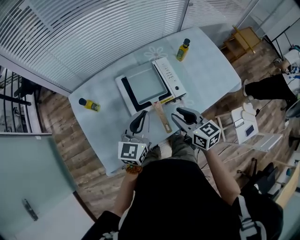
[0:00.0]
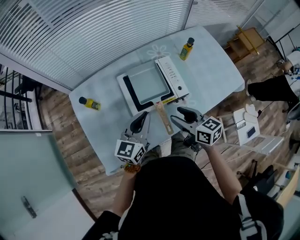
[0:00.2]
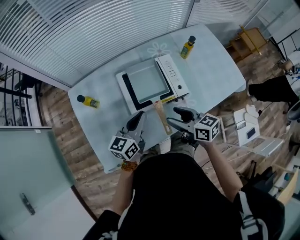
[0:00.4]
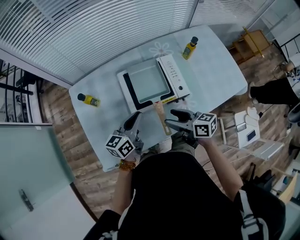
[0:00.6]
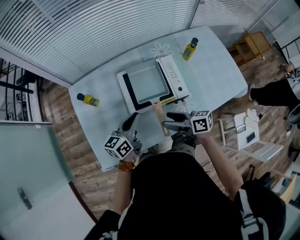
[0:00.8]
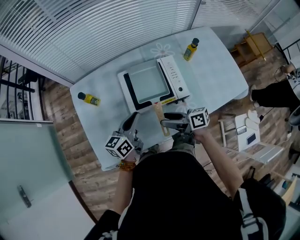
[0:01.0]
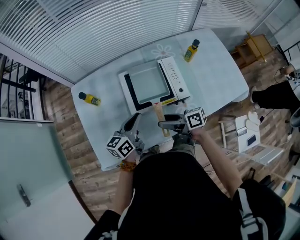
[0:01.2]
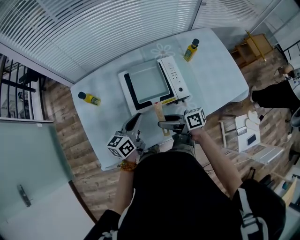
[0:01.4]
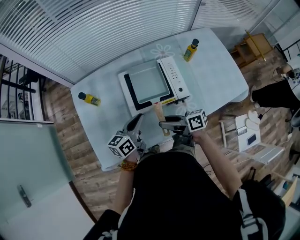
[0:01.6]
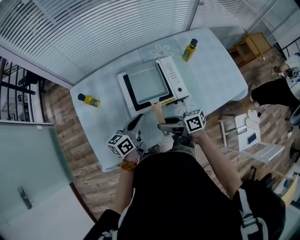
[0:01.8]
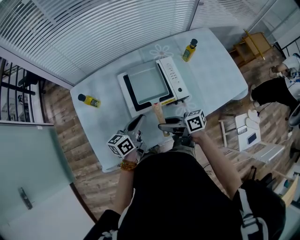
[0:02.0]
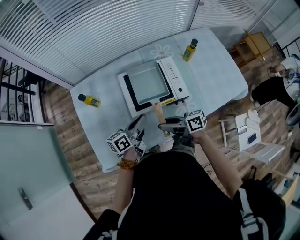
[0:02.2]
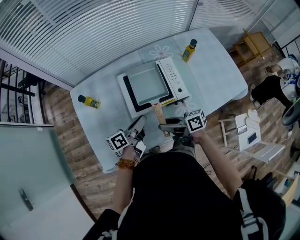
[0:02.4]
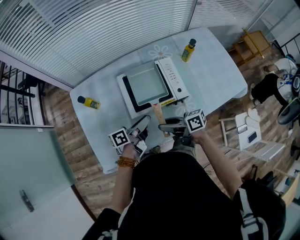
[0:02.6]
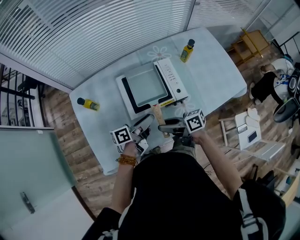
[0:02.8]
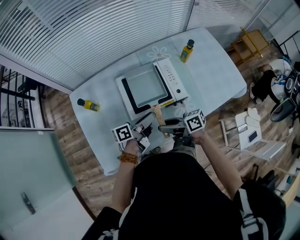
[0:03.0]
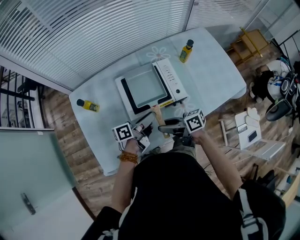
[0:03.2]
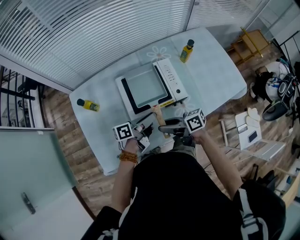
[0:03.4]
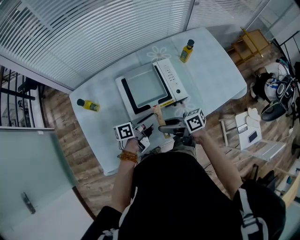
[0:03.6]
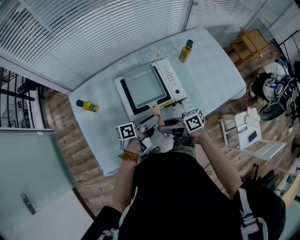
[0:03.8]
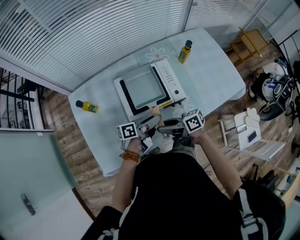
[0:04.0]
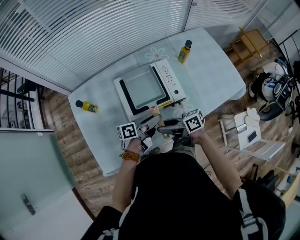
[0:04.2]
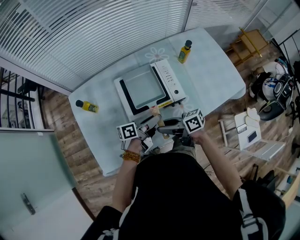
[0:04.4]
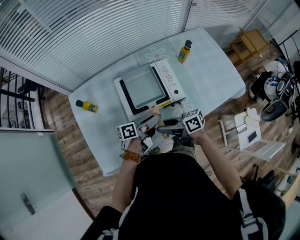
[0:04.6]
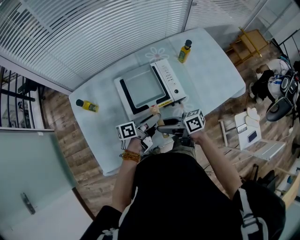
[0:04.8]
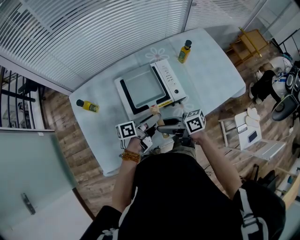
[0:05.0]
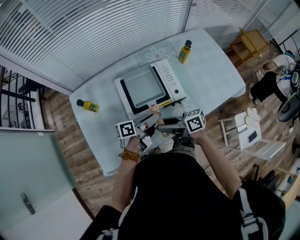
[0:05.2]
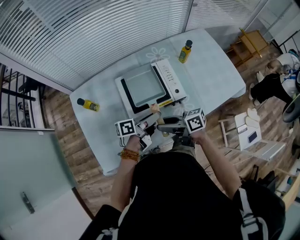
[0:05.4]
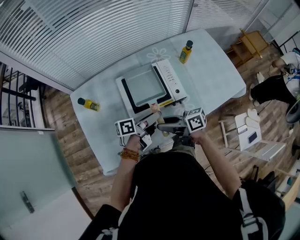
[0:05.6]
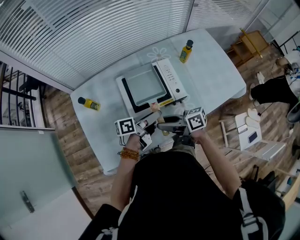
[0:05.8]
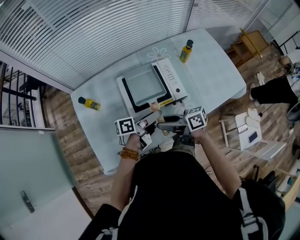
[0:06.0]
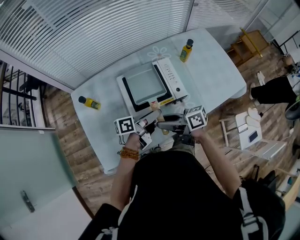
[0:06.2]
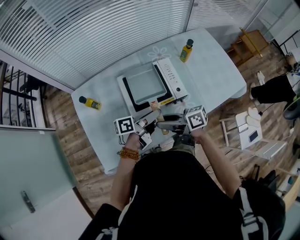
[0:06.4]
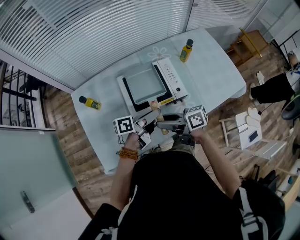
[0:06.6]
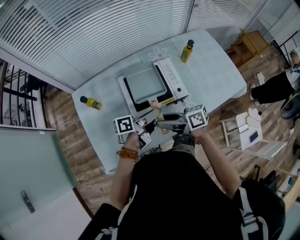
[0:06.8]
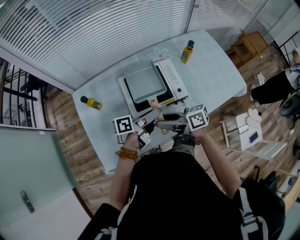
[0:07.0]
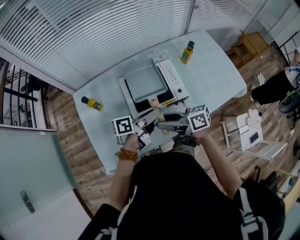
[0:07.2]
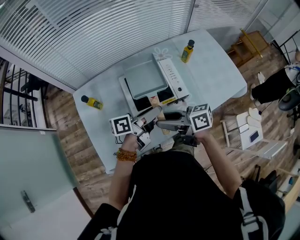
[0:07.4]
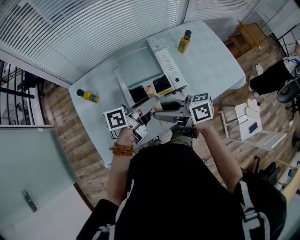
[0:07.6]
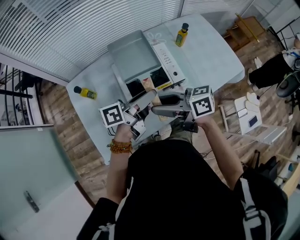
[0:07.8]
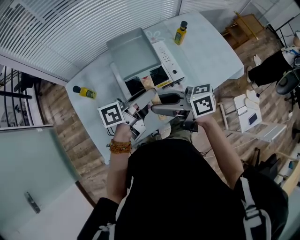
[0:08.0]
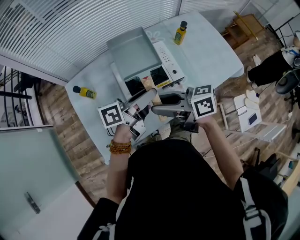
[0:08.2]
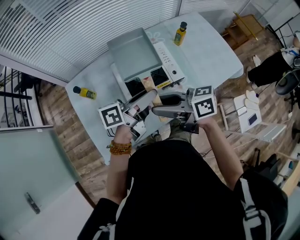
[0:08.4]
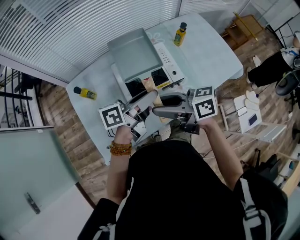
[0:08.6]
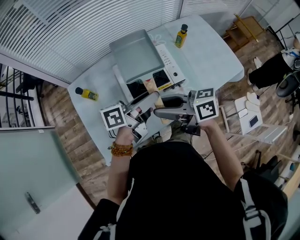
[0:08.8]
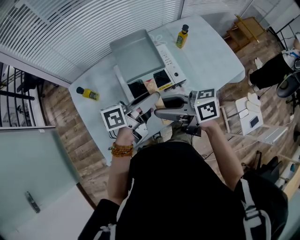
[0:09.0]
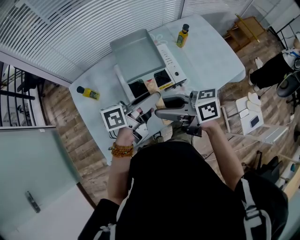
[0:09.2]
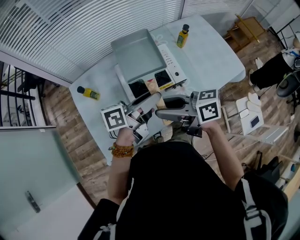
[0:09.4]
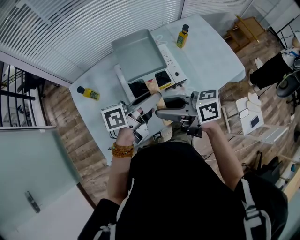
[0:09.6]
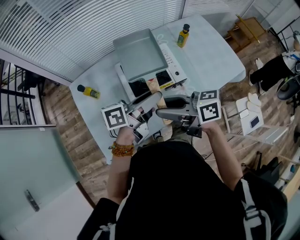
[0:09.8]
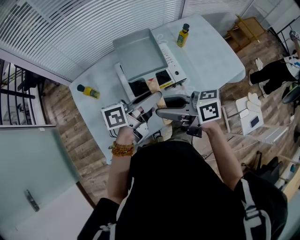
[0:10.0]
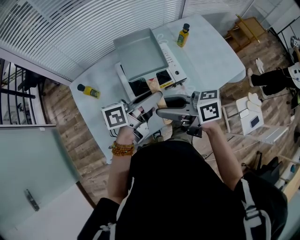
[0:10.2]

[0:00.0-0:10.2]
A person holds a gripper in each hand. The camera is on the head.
0:00.0 to 0:01.4: The left gripper travels downward by roughly 10 cm, and swivels approximately 30 degrees, while the right gripper moves downward and to the left, roughly 10 cm, turns by some 50 degrees, and opens.
0:01.4 to 0:03.0: The right gripper closes up. The left gripper shifts by about 5 cm, rotates approximately 40 degrees, and opens its fingers.
0:03.0 to 0:05.8: There are only small adjustments of the grippers.
0:05.8 to 0:07.2: The right gripper shifts by about 5 cm; the left gripper shifts roughly 5 cm upward.
0:07.2 to 0:08.8: Both grippers move upward, about 10 cm.
0:08.8 to 0:10.2: Both grippers stay about where they are.

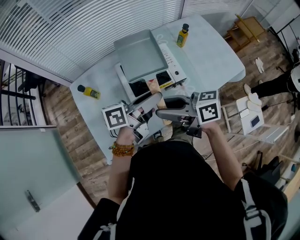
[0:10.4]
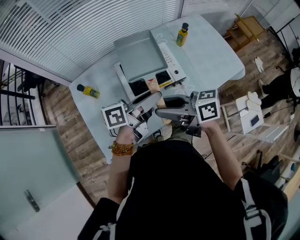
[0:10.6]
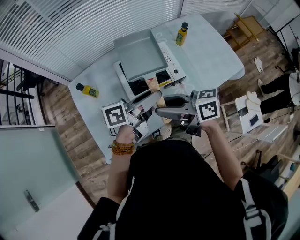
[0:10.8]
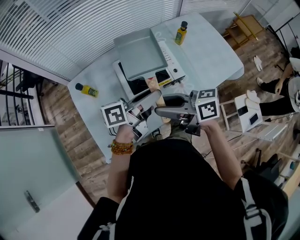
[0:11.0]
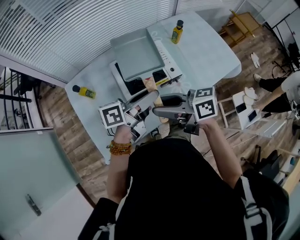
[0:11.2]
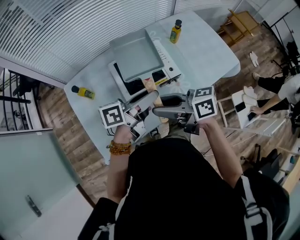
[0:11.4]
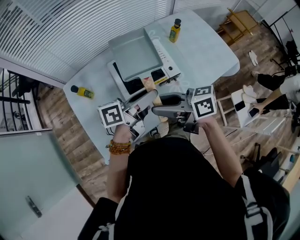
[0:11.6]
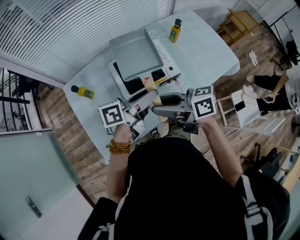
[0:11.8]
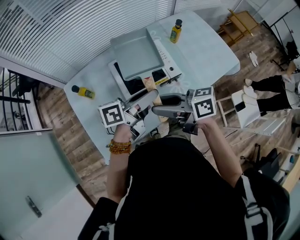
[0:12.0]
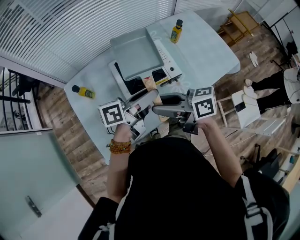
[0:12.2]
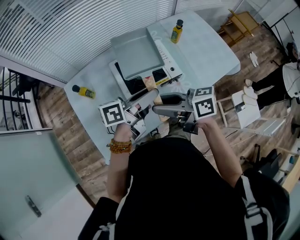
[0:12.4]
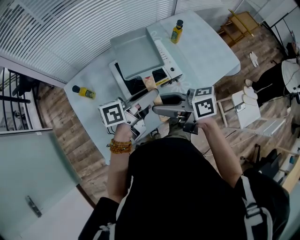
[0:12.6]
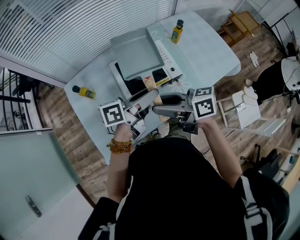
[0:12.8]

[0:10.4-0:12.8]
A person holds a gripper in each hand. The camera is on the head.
0:10.4 to 0:11.6: The two grippers keep their place.
0:11.6 to 0:12.8: Both grippers stay put.

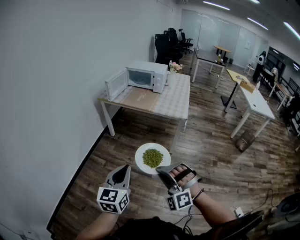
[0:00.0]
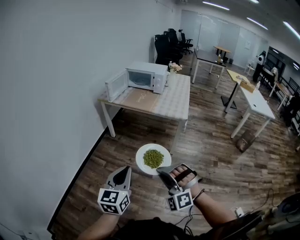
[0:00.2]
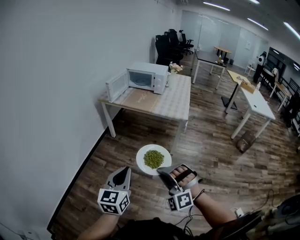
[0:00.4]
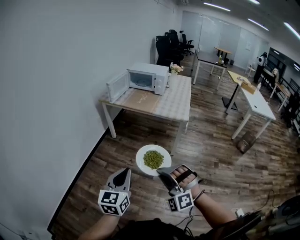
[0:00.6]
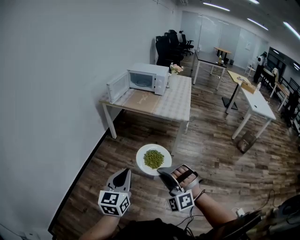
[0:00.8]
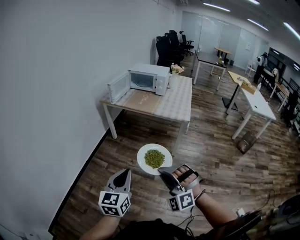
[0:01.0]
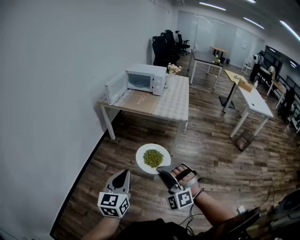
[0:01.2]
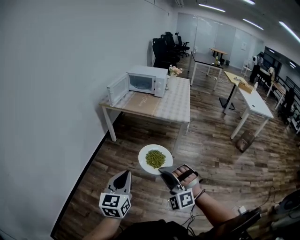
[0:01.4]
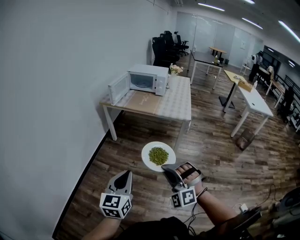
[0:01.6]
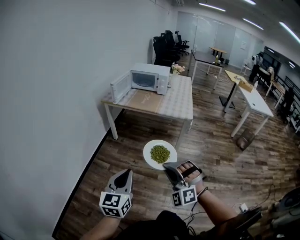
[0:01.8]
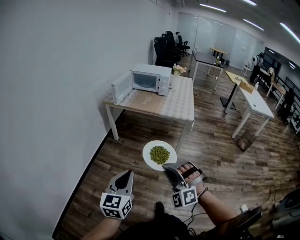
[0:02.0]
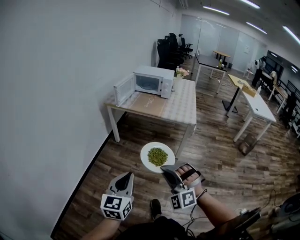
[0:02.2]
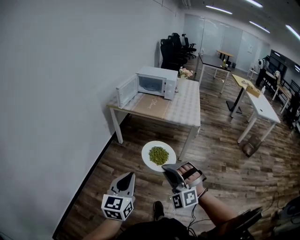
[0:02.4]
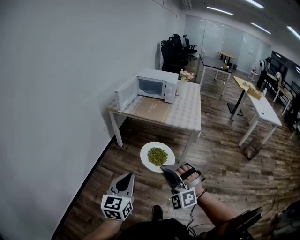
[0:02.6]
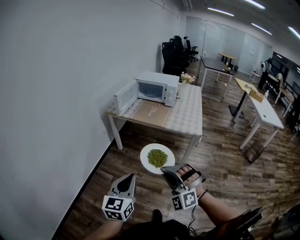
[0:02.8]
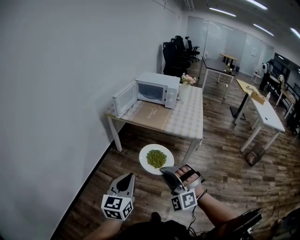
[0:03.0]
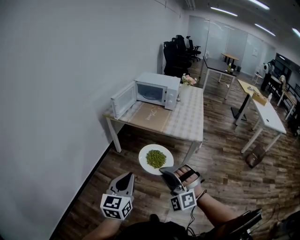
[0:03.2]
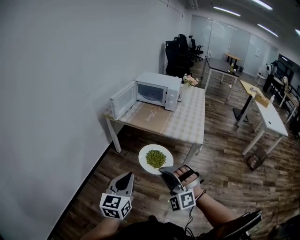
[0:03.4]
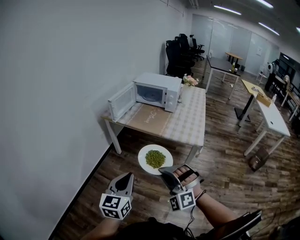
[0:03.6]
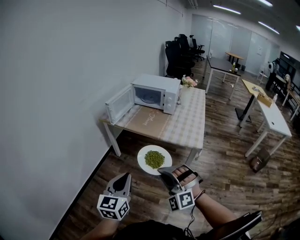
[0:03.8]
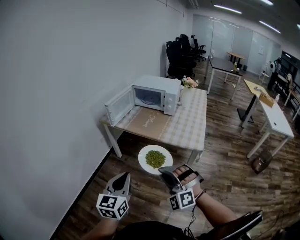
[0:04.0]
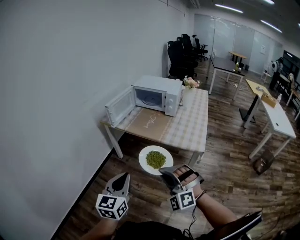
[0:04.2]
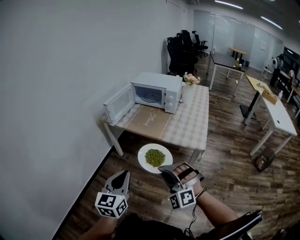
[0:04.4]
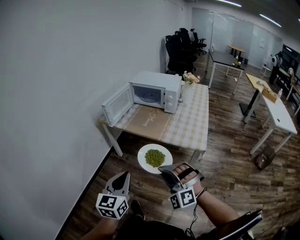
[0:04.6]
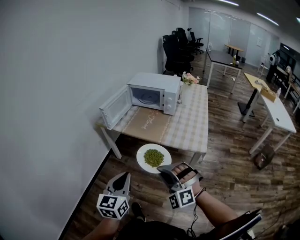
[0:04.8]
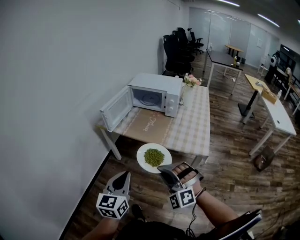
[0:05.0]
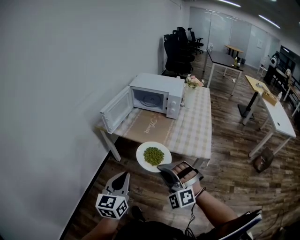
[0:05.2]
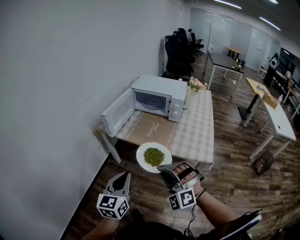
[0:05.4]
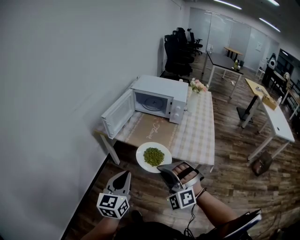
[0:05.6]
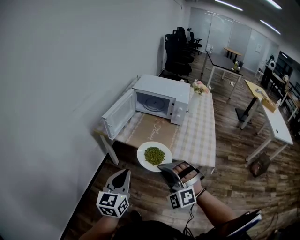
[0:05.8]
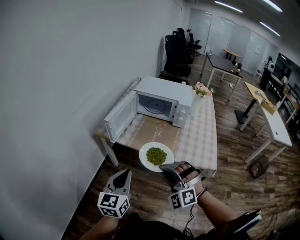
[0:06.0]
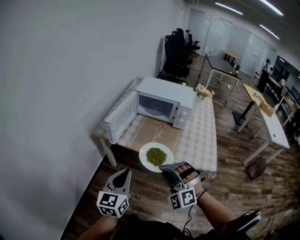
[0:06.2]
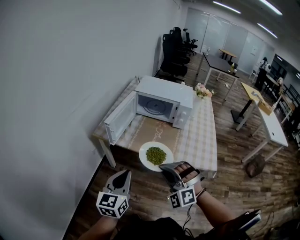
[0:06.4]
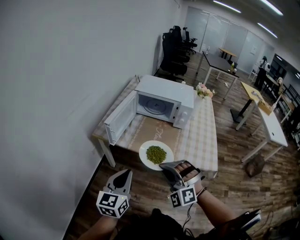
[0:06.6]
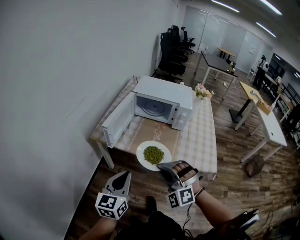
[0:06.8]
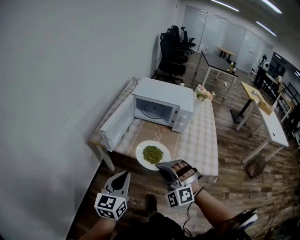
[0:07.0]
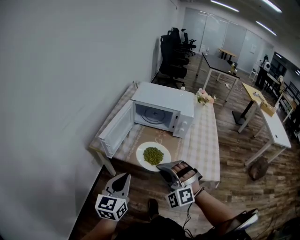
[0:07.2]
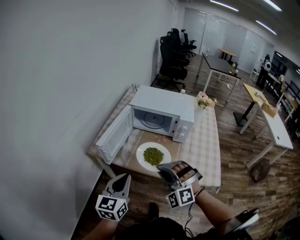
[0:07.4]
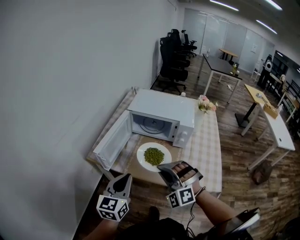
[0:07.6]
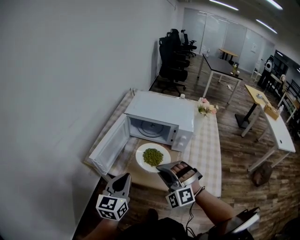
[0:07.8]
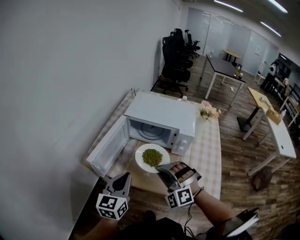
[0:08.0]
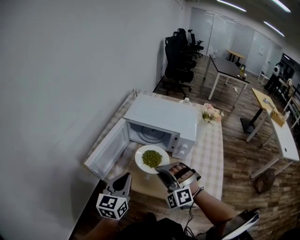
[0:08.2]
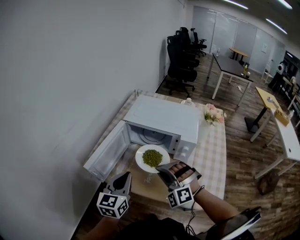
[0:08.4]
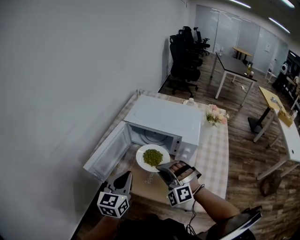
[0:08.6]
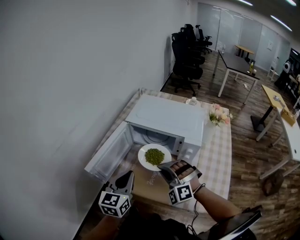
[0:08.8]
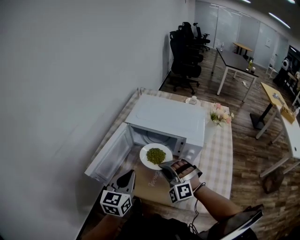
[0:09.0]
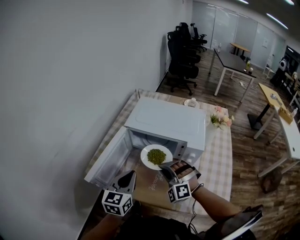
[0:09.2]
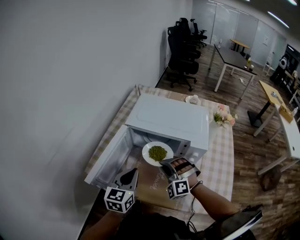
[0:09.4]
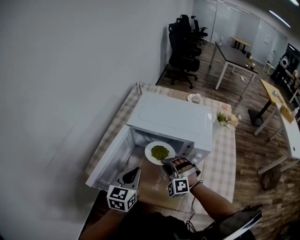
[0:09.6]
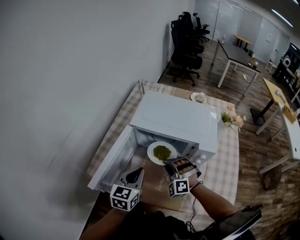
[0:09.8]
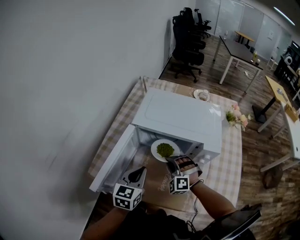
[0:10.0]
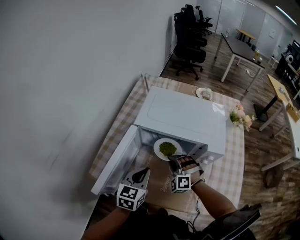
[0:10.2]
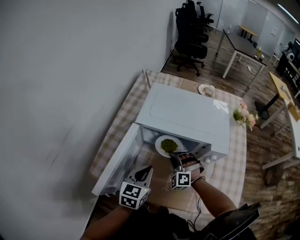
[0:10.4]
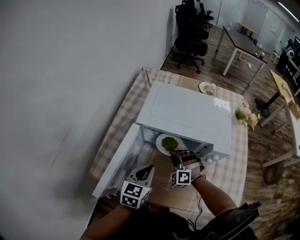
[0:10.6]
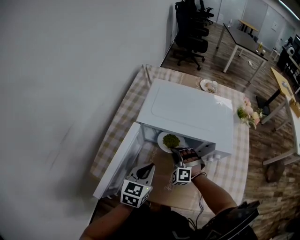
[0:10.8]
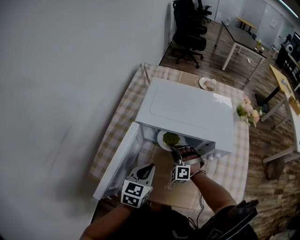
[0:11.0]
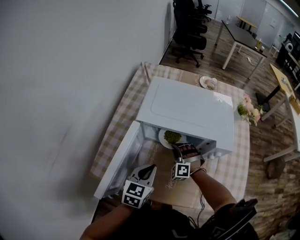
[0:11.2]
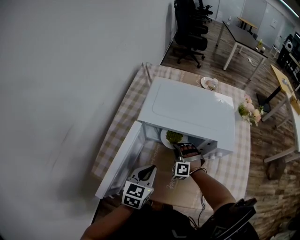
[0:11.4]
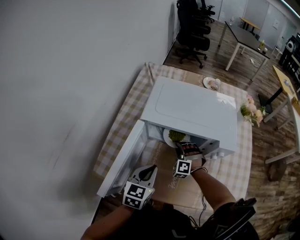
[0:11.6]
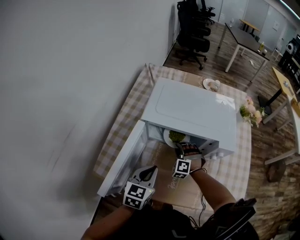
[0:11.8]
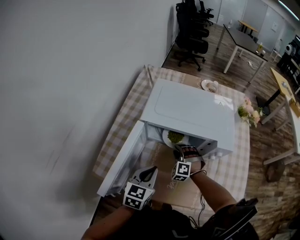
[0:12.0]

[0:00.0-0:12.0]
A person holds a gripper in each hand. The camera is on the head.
0:00.0 to 0:01.6: The left gripper shifts about 5 cm to the left.
0:01.6 to 0:03.0: Both grippers move forward, some 15 cm.
0:03.0 to 0:04.4: Both grippers travel together forward and to the right, about 15 cm.
0:04.4 to 0:06.0: The left gripper moves forward, about 20 cm, while the right gripper travels forward and to the left by some 25 cm.
0:06.0 to 0:07.6: The two grippers go roughly 20 cm forward.
0:07.6 to 0:09.0: The grippers both shift forward by some 15 cm.
0:09.0 to 0:10.4: The grippers both shift downward and forward by some 20 cm.
0:10.4 to 0:12.0: The right gripper changes place by approximately 5 cm, and opens its fingers.
